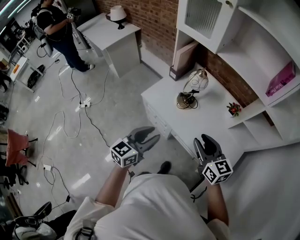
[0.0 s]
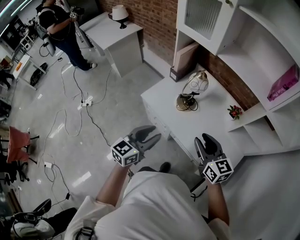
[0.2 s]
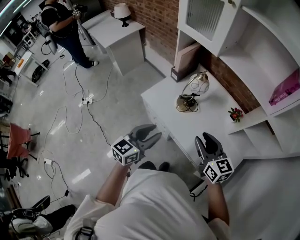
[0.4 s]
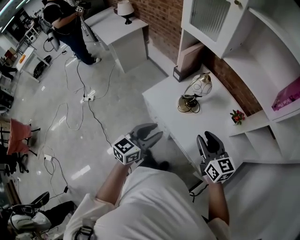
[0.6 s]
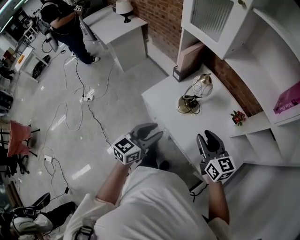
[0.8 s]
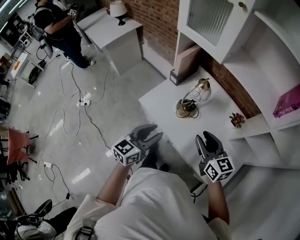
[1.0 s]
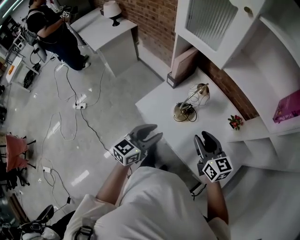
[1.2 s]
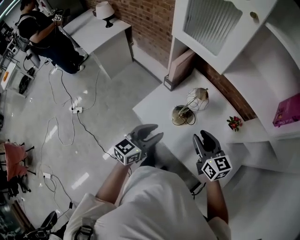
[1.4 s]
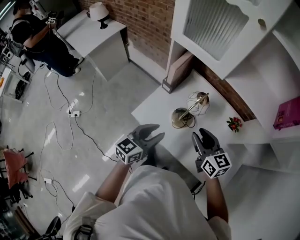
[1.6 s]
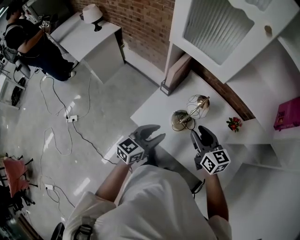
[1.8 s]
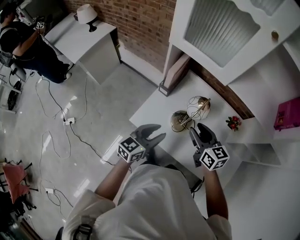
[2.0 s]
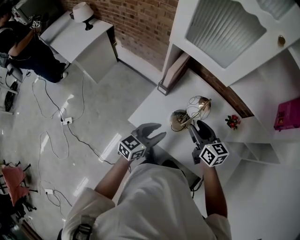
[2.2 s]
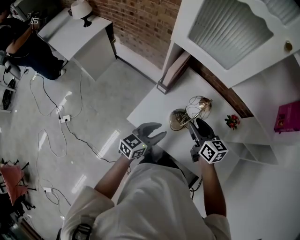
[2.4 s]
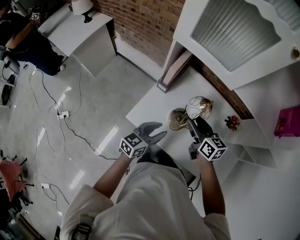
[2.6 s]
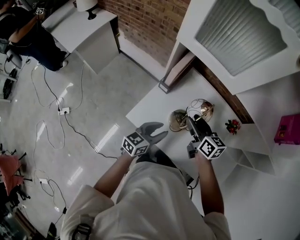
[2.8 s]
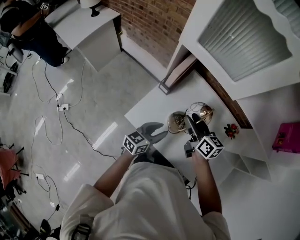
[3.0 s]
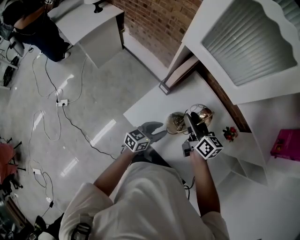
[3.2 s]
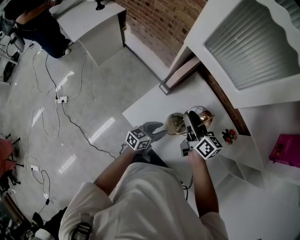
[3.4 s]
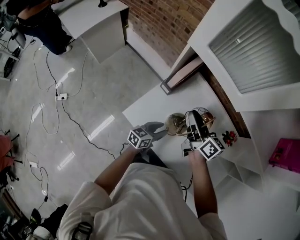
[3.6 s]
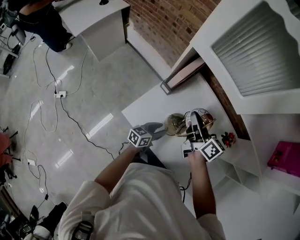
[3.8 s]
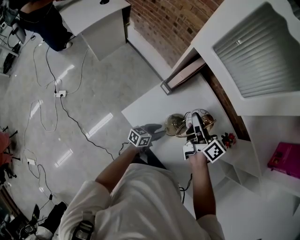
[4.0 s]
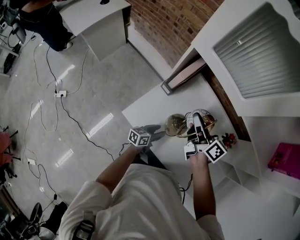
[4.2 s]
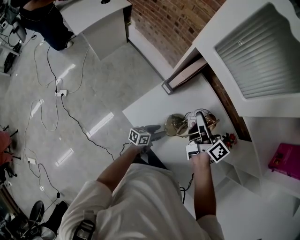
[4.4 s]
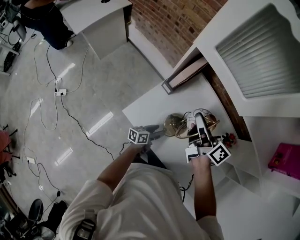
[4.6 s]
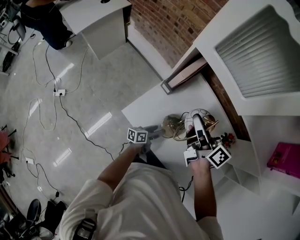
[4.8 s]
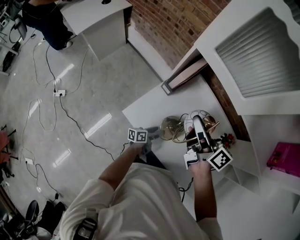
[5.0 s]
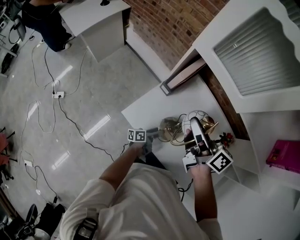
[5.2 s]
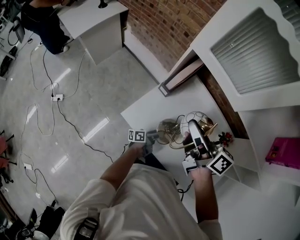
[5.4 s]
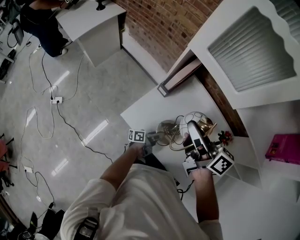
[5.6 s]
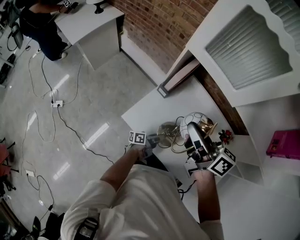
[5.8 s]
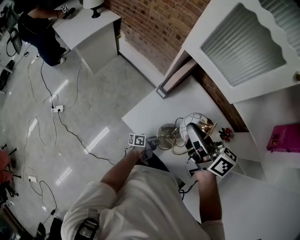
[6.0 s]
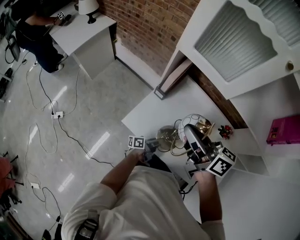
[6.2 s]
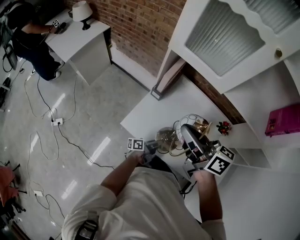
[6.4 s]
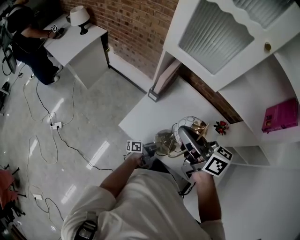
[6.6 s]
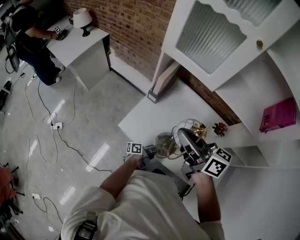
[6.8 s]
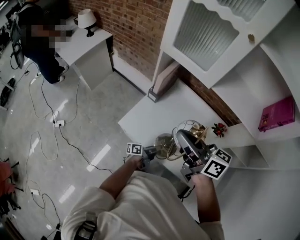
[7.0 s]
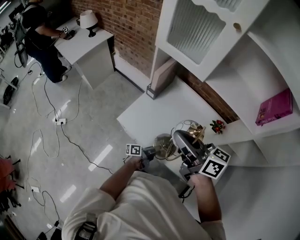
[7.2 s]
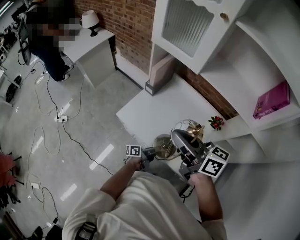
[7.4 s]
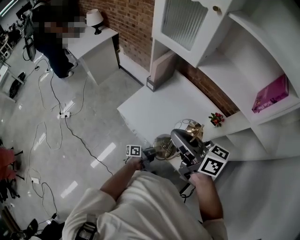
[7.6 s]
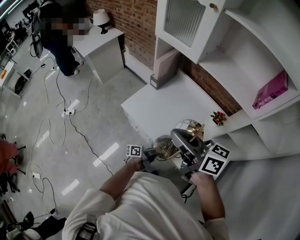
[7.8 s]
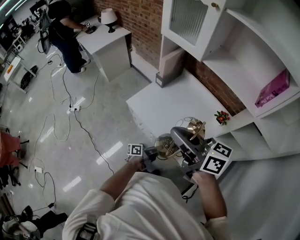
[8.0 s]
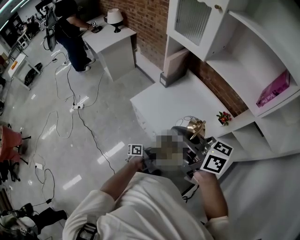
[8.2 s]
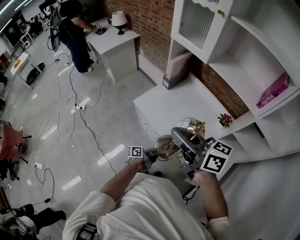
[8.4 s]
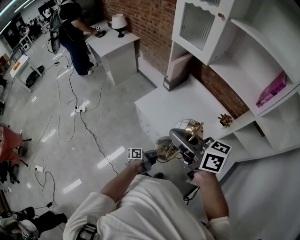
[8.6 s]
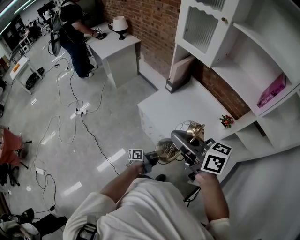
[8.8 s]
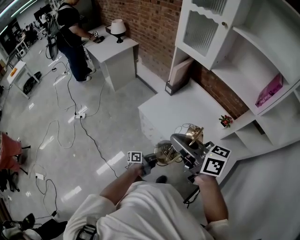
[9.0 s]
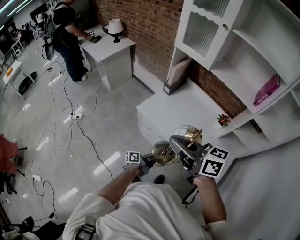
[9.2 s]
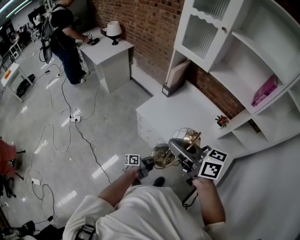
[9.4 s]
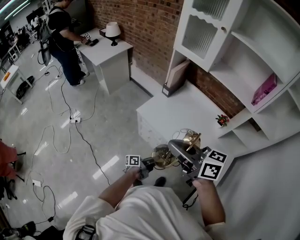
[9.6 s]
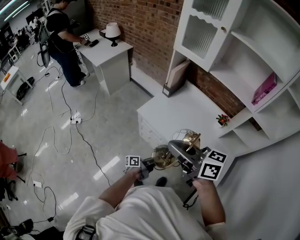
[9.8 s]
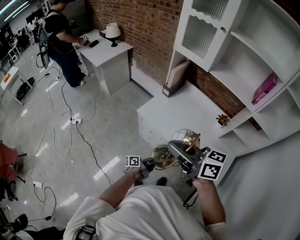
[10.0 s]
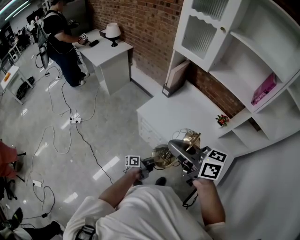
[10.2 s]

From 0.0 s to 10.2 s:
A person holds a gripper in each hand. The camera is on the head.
From 0.0 s to 1.4 s: The grippers both shift forward by some 20 cm.
From 1.4 s to 3.0 s: The right gripper is displaced forward, to the left and downward by approximately 20 cm, and changes its angle by some 20 degrees. The left gripper goes some 20 cm downward and forward.
From 3.0 s to 4.4 s: The right gripper shifts by roughly 5 cm, turns by some 20 degrees, and closes up. The left gripper moves downward, approximately 15 cm, and changes its angle by approximately 30 degrees.
From 4.4 s to 5.8 s: The left gripper rotates some 30 degrees. Meanwhile the right gripper moves upward, backward and to the left, some 15 cm.
From 5.8 s to 7.2 s: Both grippers travel together backward and to the right, approximately 15 cm.
From 7.2 s to 8.8 s: Both grippers move backward, some 20 cm.
From 8.8 s to 10.2 s: The two grippers go approximately 5 cm to the left.

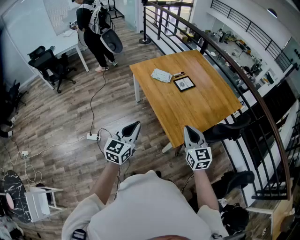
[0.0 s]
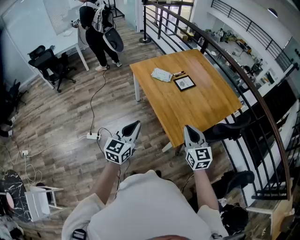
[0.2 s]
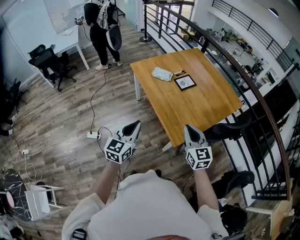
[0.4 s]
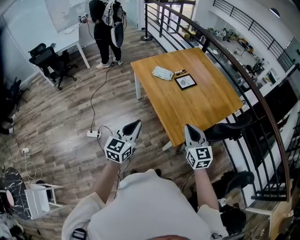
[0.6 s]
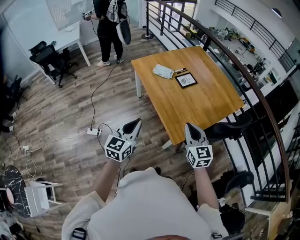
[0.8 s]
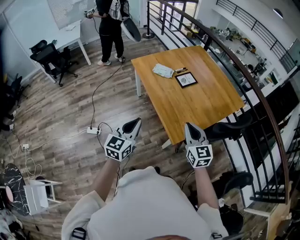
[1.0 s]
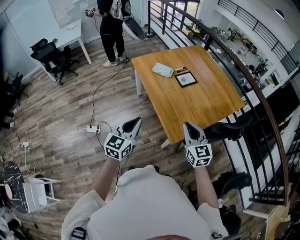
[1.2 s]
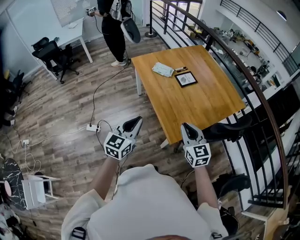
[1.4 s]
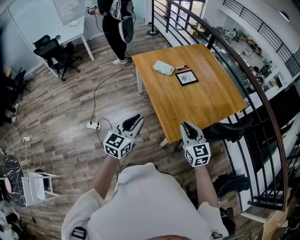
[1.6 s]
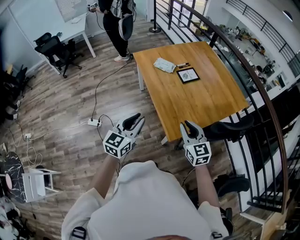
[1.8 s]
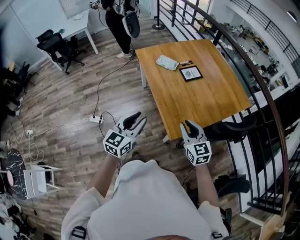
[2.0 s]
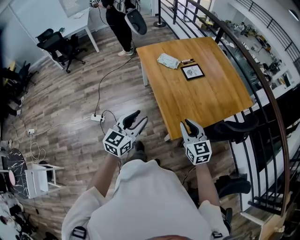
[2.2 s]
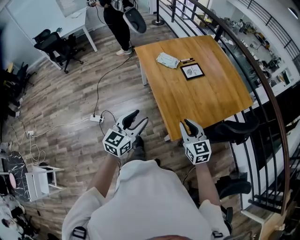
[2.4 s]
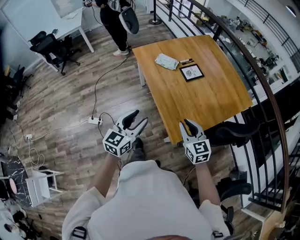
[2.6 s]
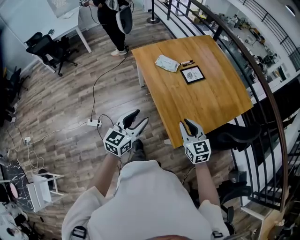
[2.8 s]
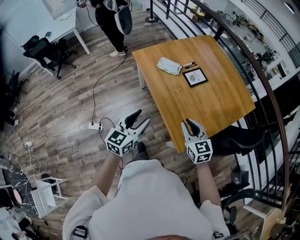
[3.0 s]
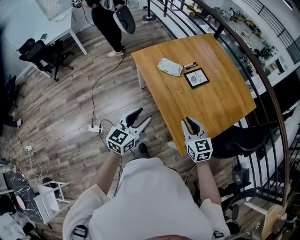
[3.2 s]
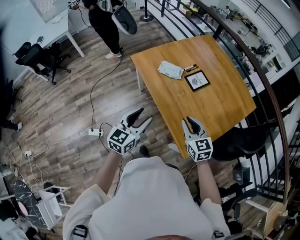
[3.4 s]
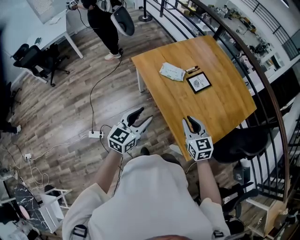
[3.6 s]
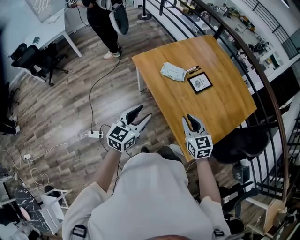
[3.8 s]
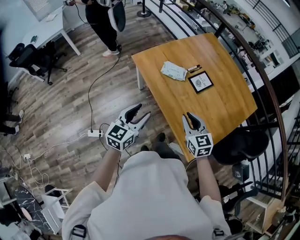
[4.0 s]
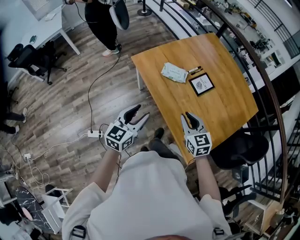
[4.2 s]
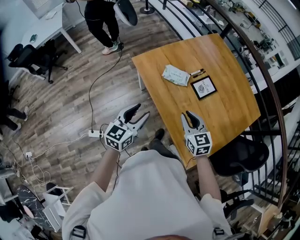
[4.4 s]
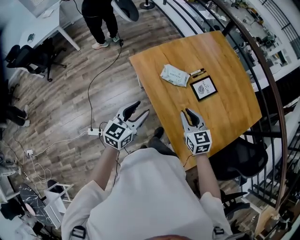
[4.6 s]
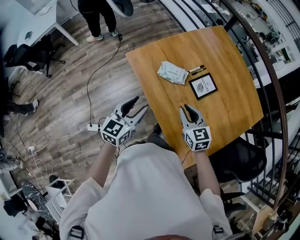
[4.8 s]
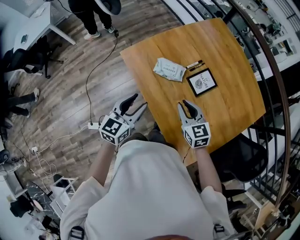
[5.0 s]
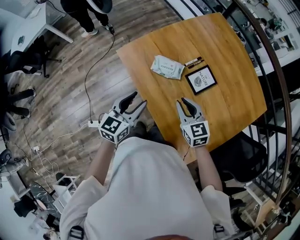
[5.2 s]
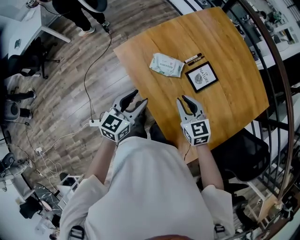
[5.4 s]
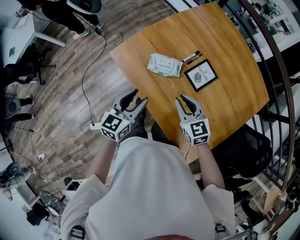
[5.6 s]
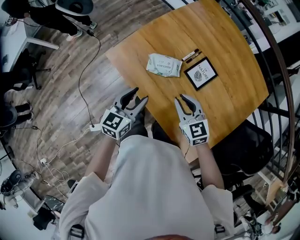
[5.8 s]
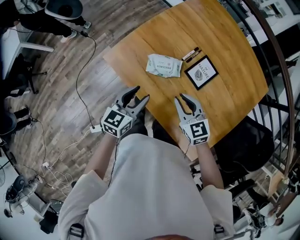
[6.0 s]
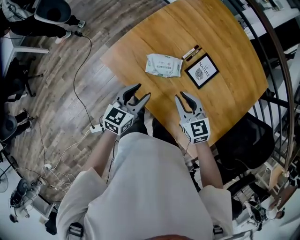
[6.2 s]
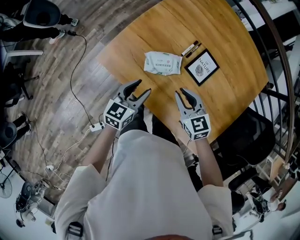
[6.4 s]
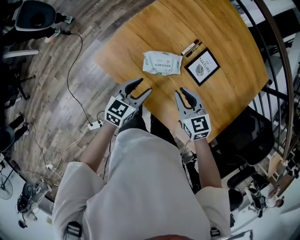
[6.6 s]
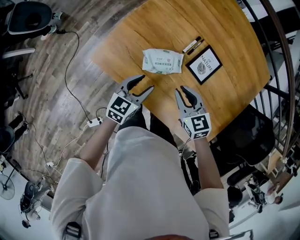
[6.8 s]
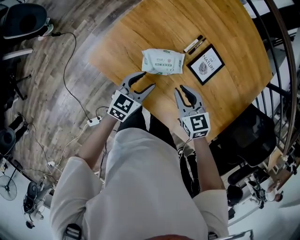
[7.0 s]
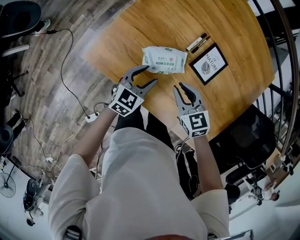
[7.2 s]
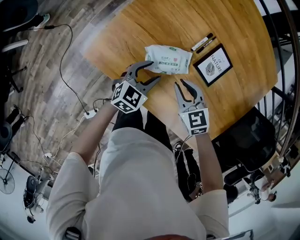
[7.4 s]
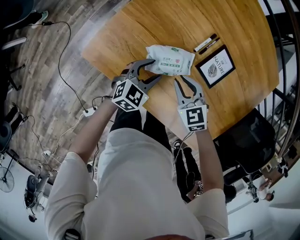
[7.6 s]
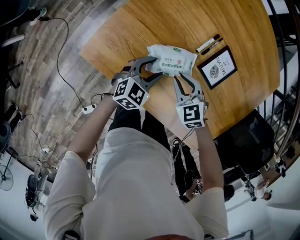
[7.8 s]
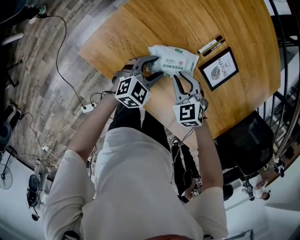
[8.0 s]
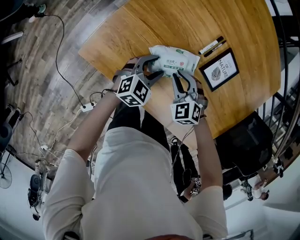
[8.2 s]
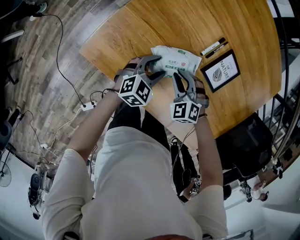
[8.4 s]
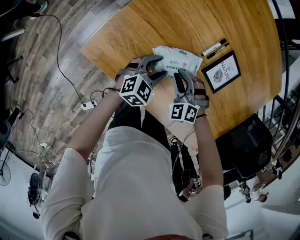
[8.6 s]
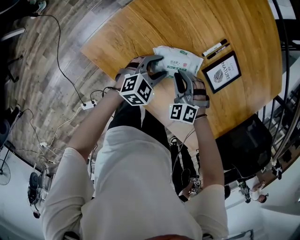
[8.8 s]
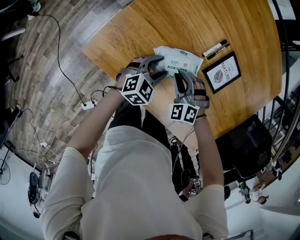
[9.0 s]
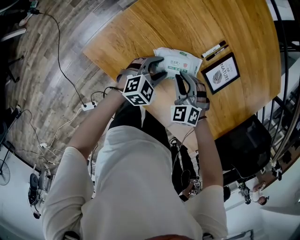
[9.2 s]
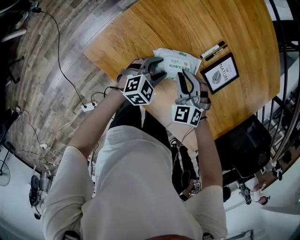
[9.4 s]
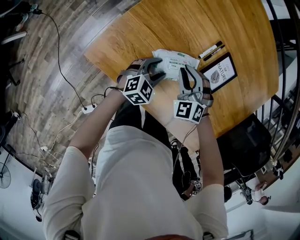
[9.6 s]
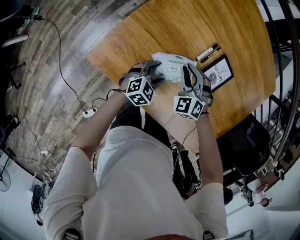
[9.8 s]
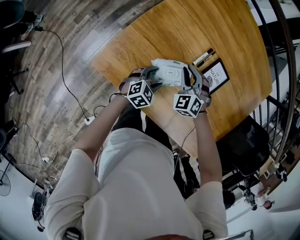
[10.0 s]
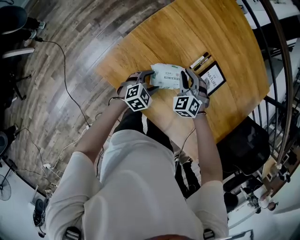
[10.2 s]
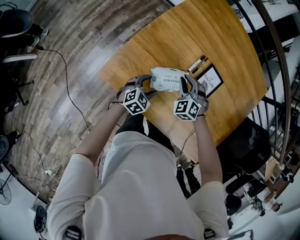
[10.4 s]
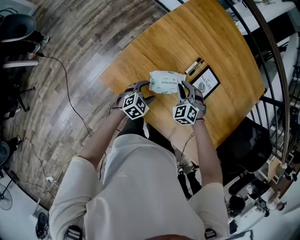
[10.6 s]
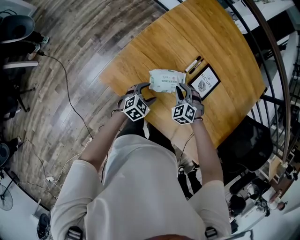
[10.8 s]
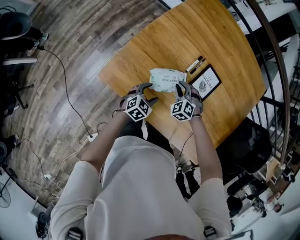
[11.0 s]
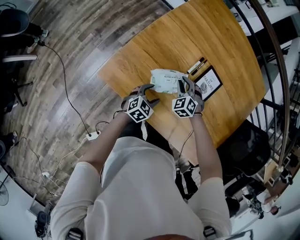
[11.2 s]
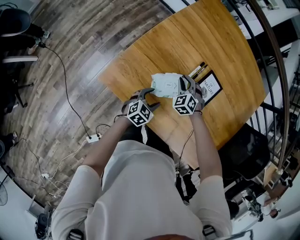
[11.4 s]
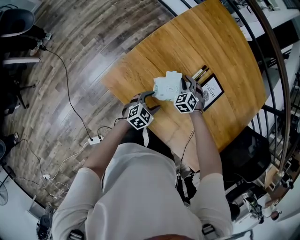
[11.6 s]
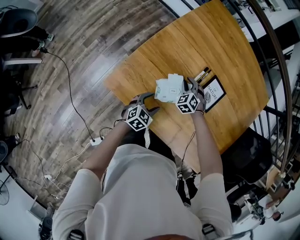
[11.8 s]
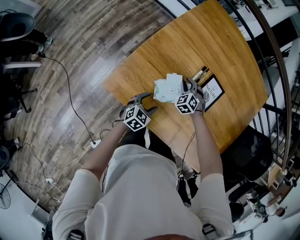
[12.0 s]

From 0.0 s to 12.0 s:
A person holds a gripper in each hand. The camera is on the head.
From 0.0 s to 1.6 s: The right gripper changes place by approximately 5 cm. The left gripper moves to the right, roughly 5 cm.
From 1.6 s to 3.0 s: The right gripper is displaced forward and to the left by some 15 cm. Meanwhile the left gripper is displaced forward by about 15 cm, and opens up.
From 3.0 s to 4.4 s: Both grippers travel together forward and to the left, roughly 25 cm.
From 4.4 s to 6.0 s: The two grippers go some 25 cm forward and downward.
From 6.0 s to 7.6 s: The two grippers go approximately 20 cm downward and forward. The left gripper turns by approximately 30 degrees.
From 7.6 s to 9.0 s: The left gripper shifts by about 5 cm. Meanwhile the right gripper shifts approximately 5 cm downward, and rotates approximately 40 degrees.
From 9.0 s to 10.4 s: The right gripper travels upward and forward by about 10 cm; the left gripper shifts by some 5 cm.
From 10.4 s to 12.0 s: The right gripper moves downward, approximately 10 cm.

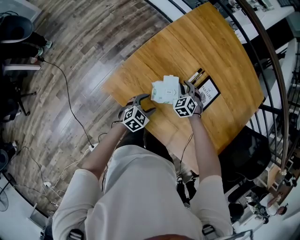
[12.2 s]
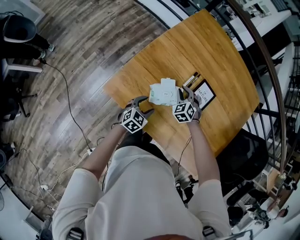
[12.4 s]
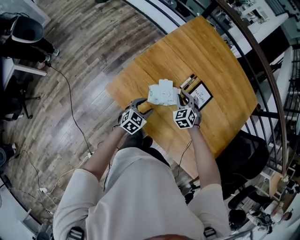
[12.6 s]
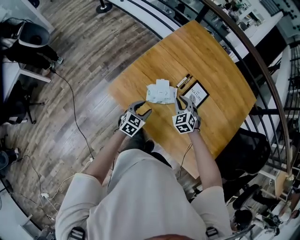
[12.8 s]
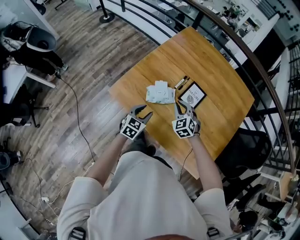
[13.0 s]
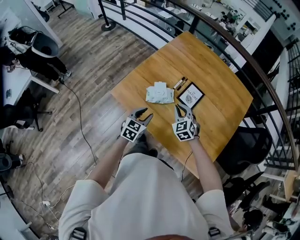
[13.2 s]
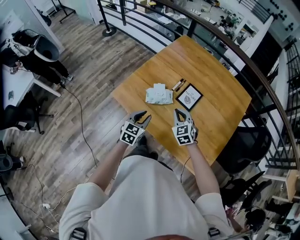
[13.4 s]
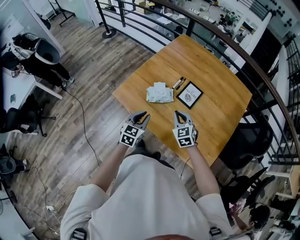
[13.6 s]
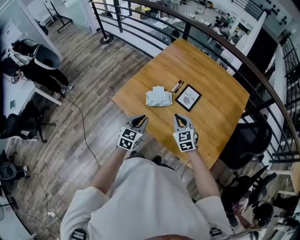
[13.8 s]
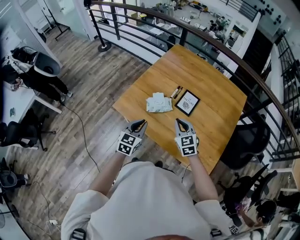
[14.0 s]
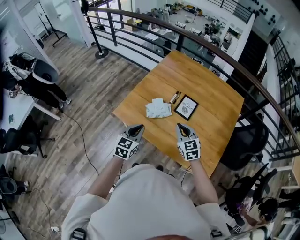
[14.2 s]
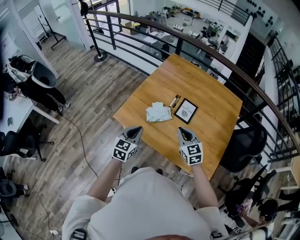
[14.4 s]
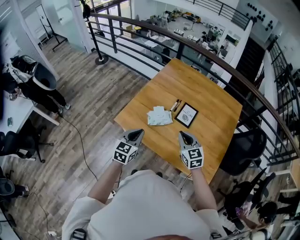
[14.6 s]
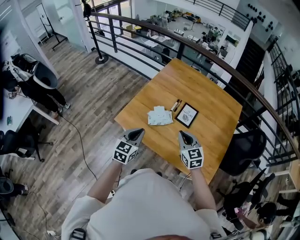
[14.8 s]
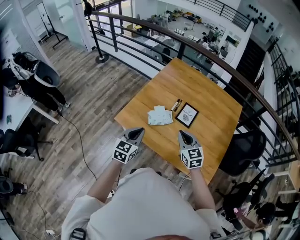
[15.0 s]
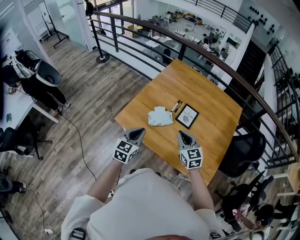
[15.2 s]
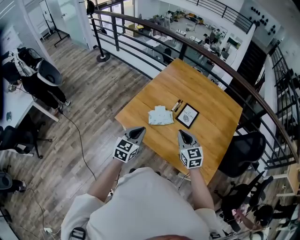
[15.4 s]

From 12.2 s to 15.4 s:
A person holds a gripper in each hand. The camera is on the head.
From 12.2 s to 13.8 s: The two grippers go approximately 35 cm upward and backward. The left gripper rotates roughly 30 degrees, and closes its fingers. The right gripper swivels about 30 degrees.
From 13.8 s to 15.4 s: The right gripper shifts some 10 cm upward. The left gripper moves upward and to the left, roughly 10 cm.
